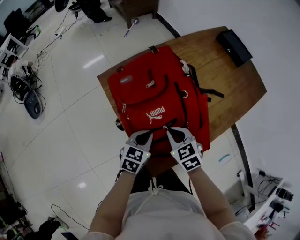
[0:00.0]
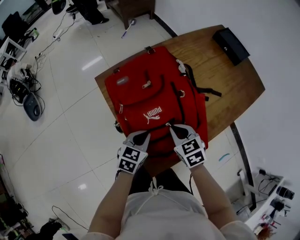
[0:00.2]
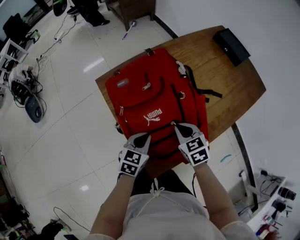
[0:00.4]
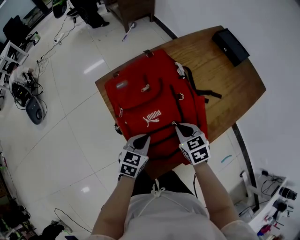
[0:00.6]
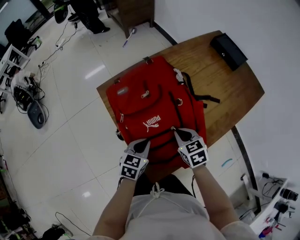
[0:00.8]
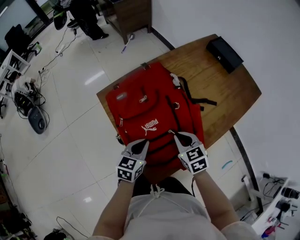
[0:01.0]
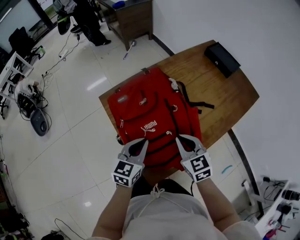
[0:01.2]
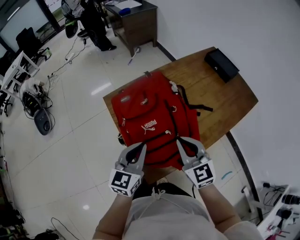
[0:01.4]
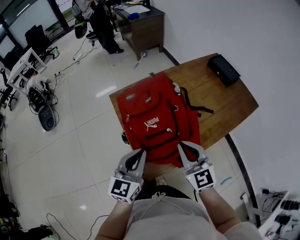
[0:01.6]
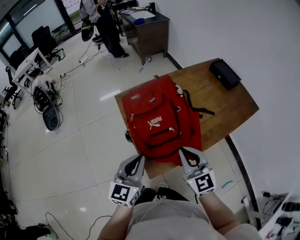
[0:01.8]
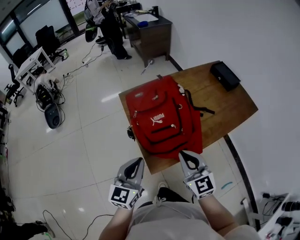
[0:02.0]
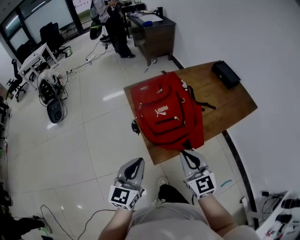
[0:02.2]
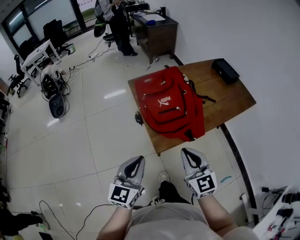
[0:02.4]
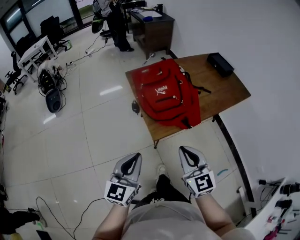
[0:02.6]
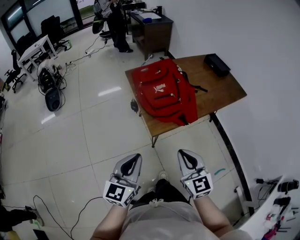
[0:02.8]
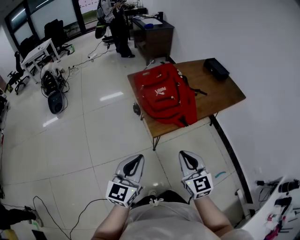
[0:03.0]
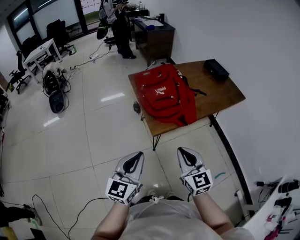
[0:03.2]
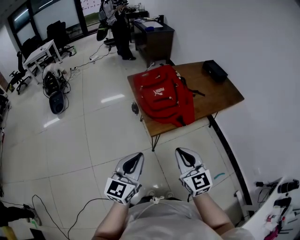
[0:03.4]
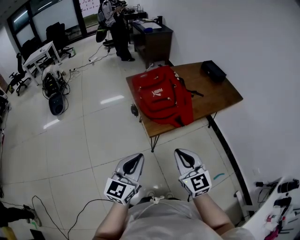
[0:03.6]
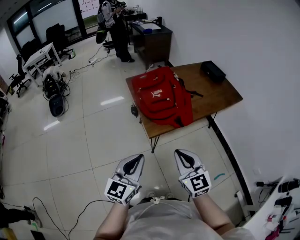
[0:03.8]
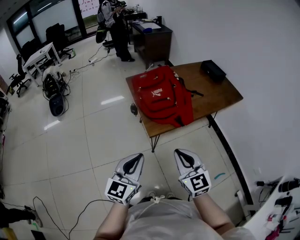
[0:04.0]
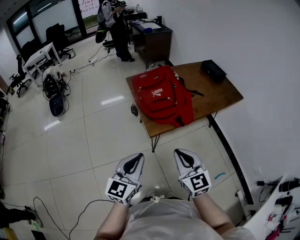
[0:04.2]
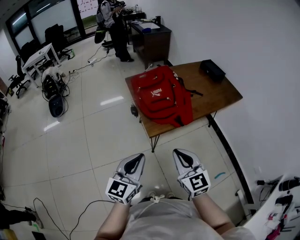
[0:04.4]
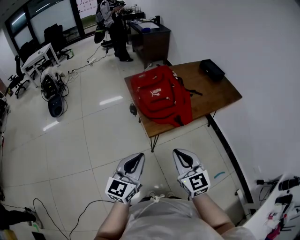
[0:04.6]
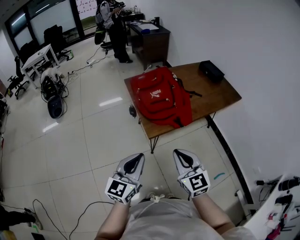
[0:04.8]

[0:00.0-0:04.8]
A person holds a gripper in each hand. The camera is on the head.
0:00.0 to 0:01.6: The two grippers go approximately 20 cm upward. The right gripper tilts its fingers about 30 degrees upward, while the left gripper swivels about 30 degrees.
0:01.6 to 0:03.2: Both grippers travel together backward, about 30 cm.
0:03.2 to 0:04.8: There are only small adjustments of the grippers.

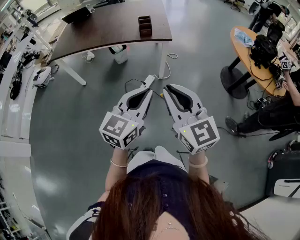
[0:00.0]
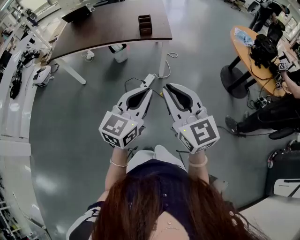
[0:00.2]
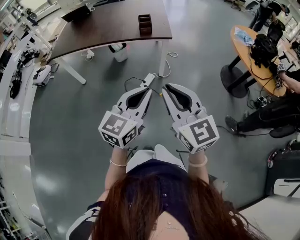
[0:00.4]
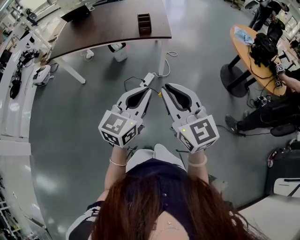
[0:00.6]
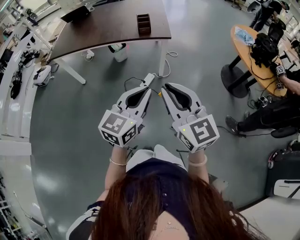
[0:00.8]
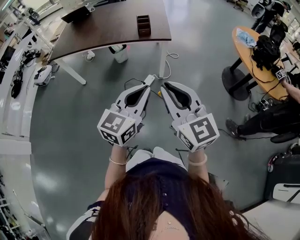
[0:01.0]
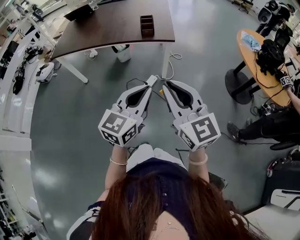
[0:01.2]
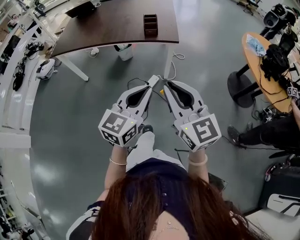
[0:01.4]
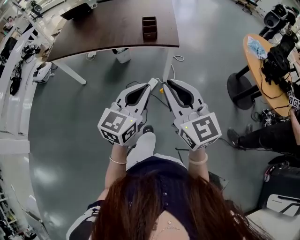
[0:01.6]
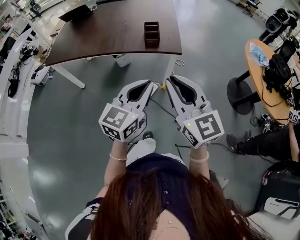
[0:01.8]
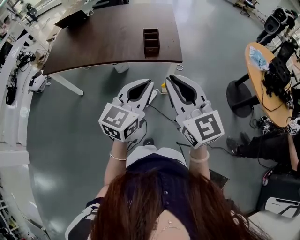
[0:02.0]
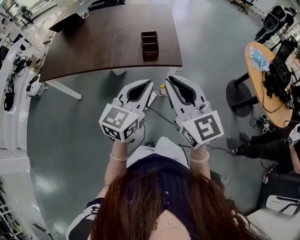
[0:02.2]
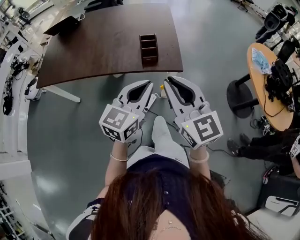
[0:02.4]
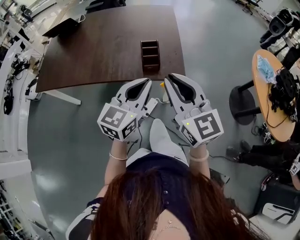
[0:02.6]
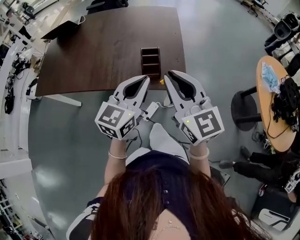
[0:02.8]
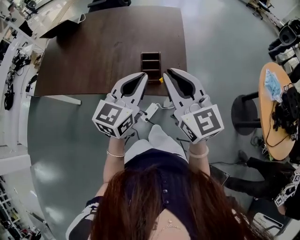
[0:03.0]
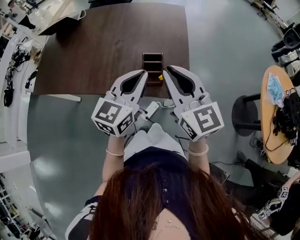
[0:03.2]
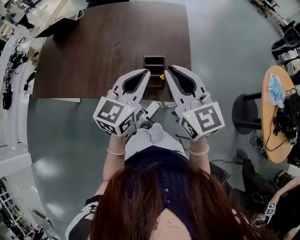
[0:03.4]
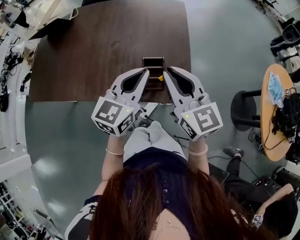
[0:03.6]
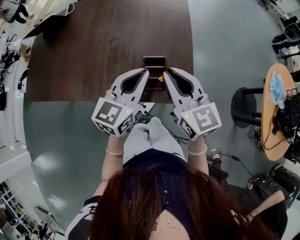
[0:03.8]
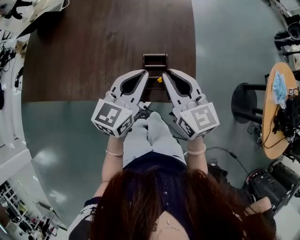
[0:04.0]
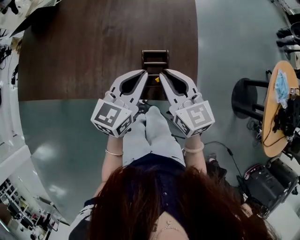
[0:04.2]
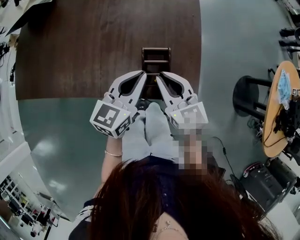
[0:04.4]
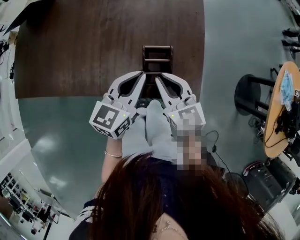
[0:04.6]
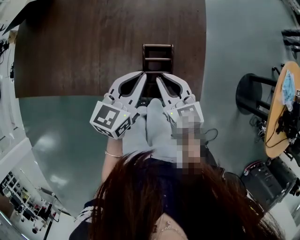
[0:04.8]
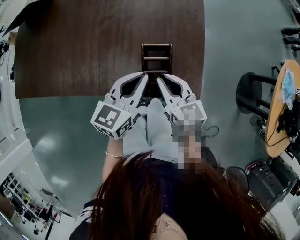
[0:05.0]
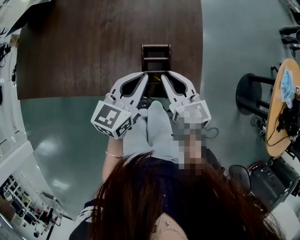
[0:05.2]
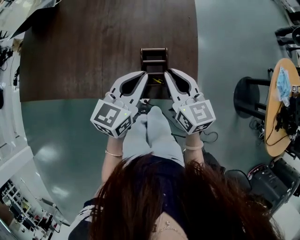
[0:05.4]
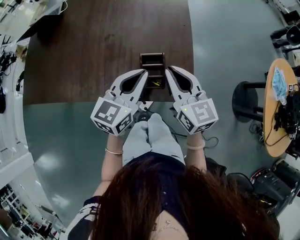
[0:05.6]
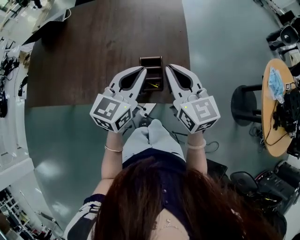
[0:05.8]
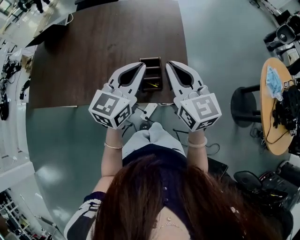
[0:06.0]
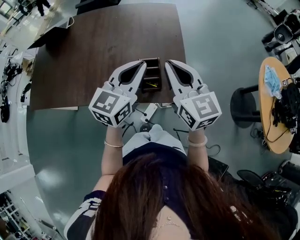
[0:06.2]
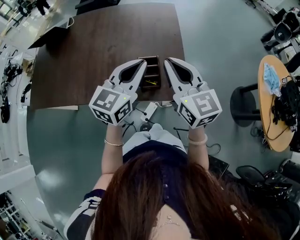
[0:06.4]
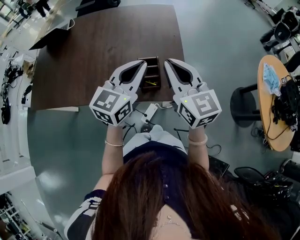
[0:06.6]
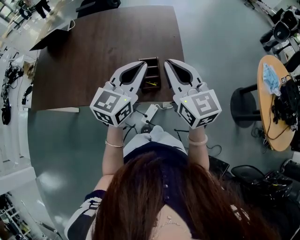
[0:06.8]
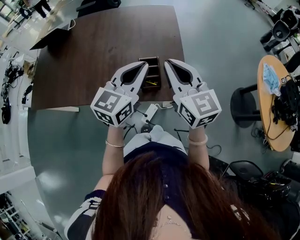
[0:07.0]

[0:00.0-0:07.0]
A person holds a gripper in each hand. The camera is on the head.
0:00.0 to 0:01.4: Both grippers move forward, approximately 10 cm.
0:01.4 to 0:02.8: The two grippers travel together, forward, roughly 40 cm.
0:02.8 to 0:04.2: Both grippers travel together forward and downward, roughly 25 cm. The right gripper changes its angle by approximately 20 degrees.
0:04.2 to 0:05.6: The right gripper travels downward and back again, approximately 10 cm each way.
0:05.6 to 0:07.0: The left gripper is displaced upward by roughly 10 cm; the right gripper goes some 10 cm upward and backward.

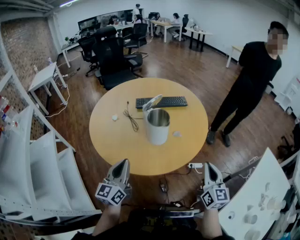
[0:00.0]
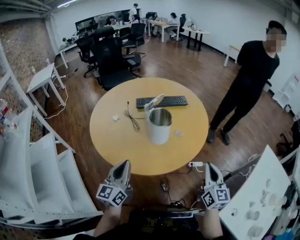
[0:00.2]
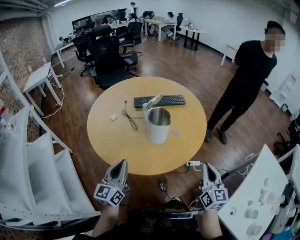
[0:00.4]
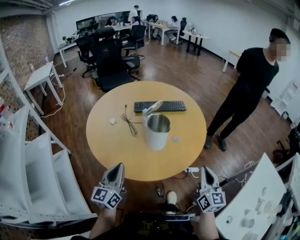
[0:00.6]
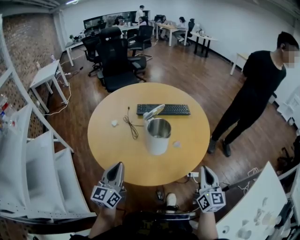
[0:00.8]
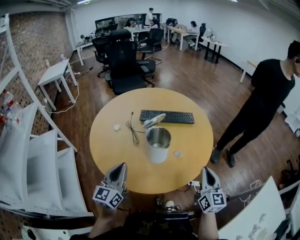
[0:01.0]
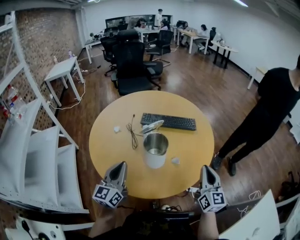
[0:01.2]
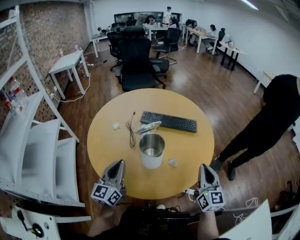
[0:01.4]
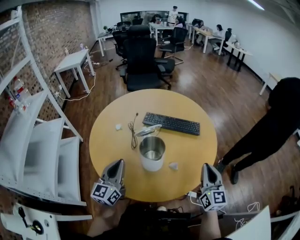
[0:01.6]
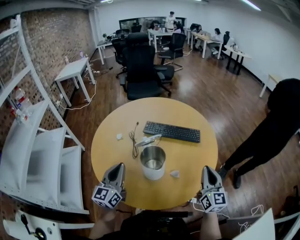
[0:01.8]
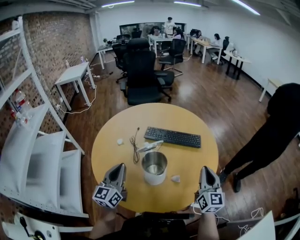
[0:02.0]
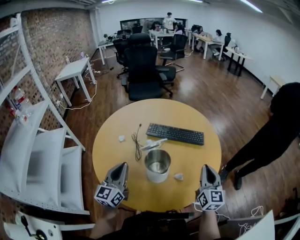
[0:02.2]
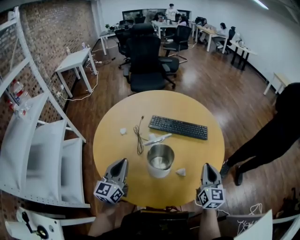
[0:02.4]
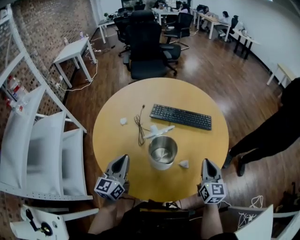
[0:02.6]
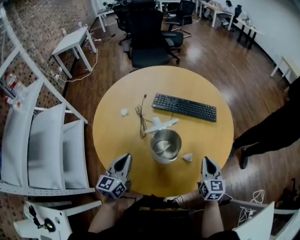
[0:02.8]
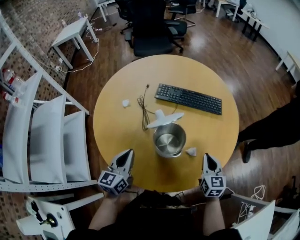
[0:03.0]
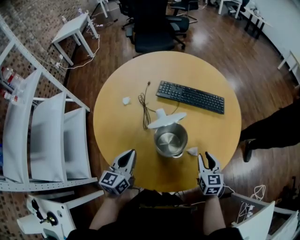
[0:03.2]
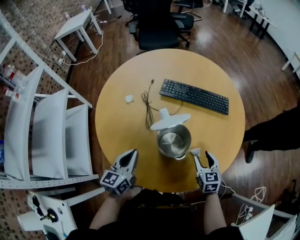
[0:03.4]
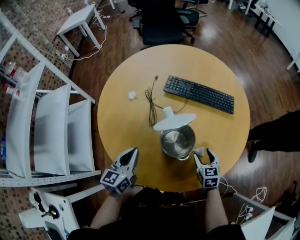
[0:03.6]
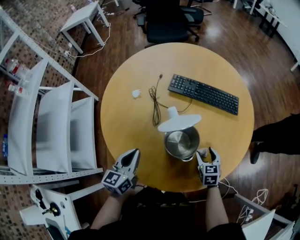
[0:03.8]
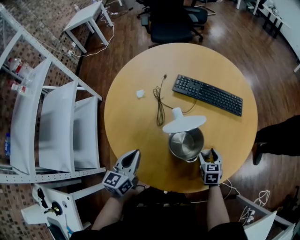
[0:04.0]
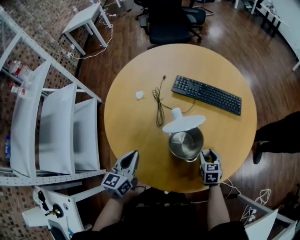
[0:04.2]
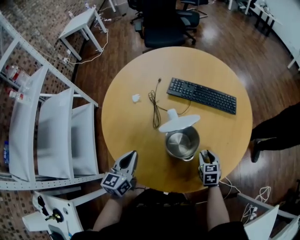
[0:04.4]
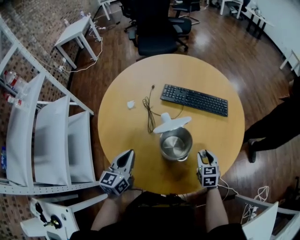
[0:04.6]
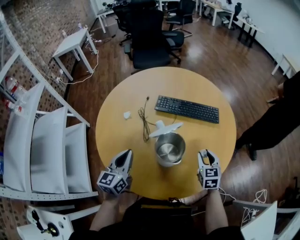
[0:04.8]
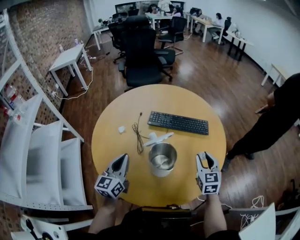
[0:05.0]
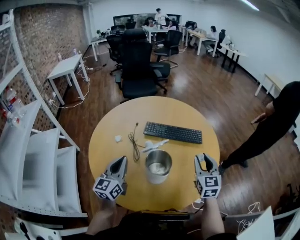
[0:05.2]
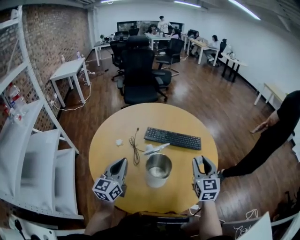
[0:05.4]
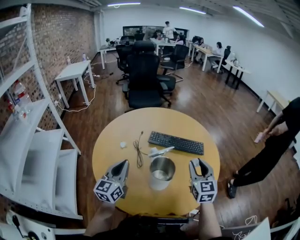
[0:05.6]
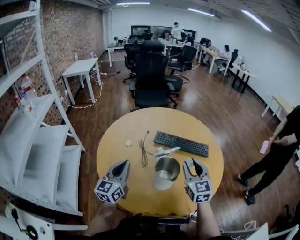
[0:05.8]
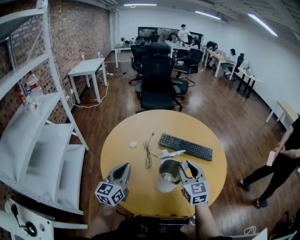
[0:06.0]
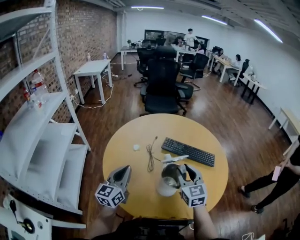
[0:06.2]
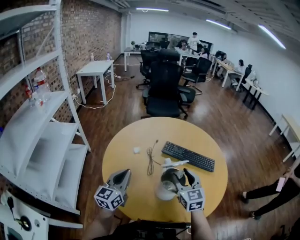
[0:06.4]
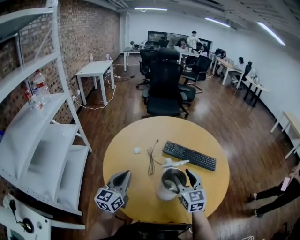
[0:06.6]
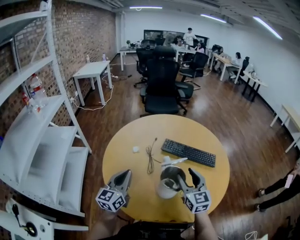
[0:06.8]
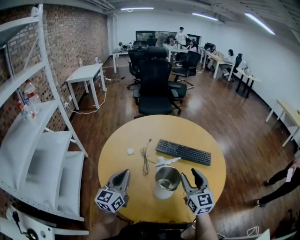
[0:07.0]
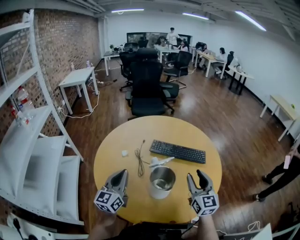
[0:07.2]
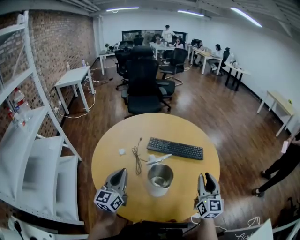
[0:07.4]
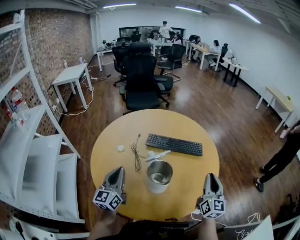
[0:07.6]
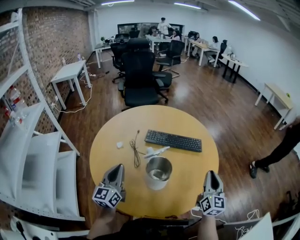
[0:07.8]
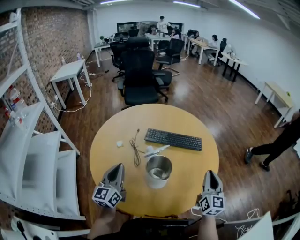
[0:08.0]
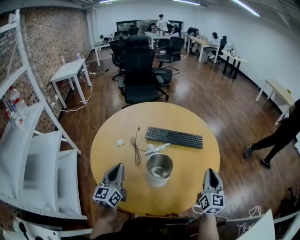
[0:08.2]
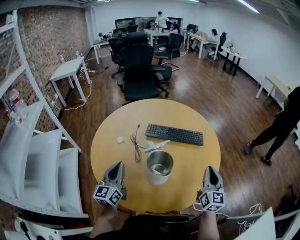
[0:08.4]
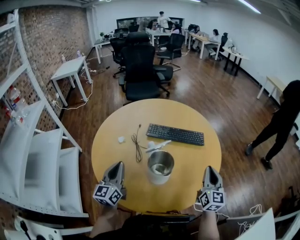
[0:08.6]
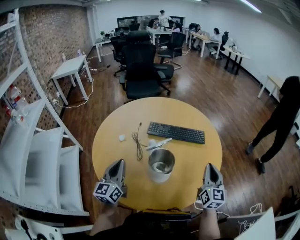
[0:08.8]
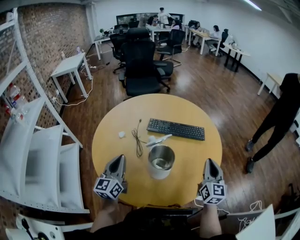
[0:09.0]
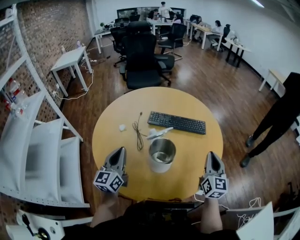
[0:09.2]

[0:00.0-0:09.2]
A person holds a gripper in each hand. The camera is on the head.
0:00.0 to 0:01.6: The left gripper heads forward, covering approximately 15 cm, and turns by roughly 20 degrees, while the right gripper heads forward, covering some 25 cm.
0:01.6 to 0:03.0: The left gripper goes roughly 10 cm downward; the right gripper shifts approximately 15 cm downward, and swivels about 20 degrees.
0:03.0 to 0:04.6: The right gripper shifts about 10 cm downward, and opens.
0:04.6 to 0:06.2: The right gripper shifts some 25 cm upward and to the left, and turns by some 30 degrees; the left gripper goes approximately 10 cm upward.
0:06.2 to 0:07.6: The right gripper shifts some 20 cm to the right, and swivels roughly 40 degrees.
0:07.6 to 0:09.2: The grippers make only small movements.

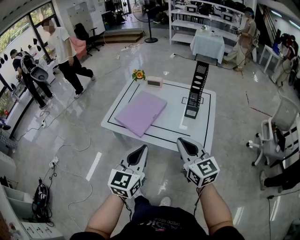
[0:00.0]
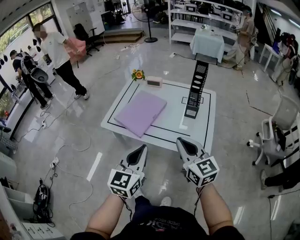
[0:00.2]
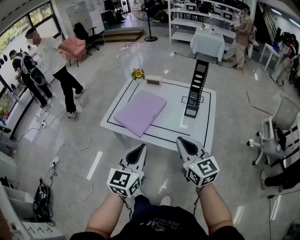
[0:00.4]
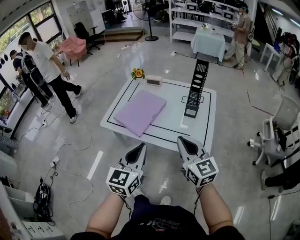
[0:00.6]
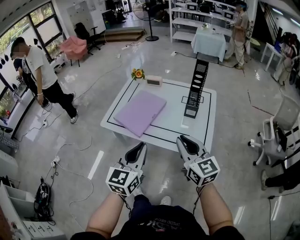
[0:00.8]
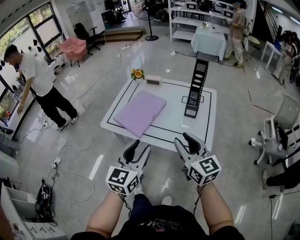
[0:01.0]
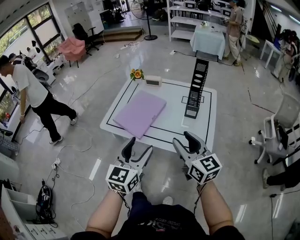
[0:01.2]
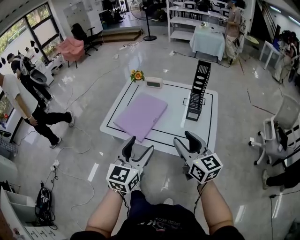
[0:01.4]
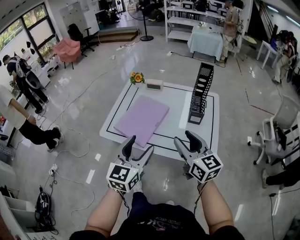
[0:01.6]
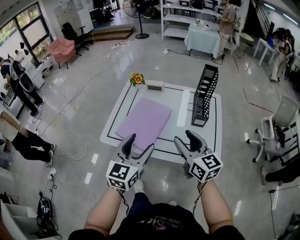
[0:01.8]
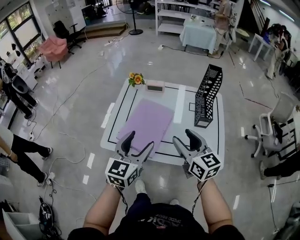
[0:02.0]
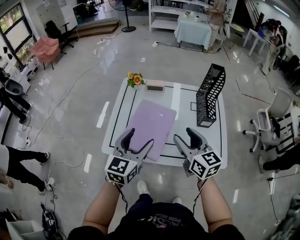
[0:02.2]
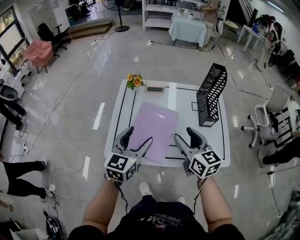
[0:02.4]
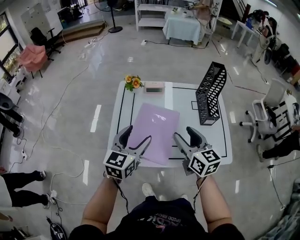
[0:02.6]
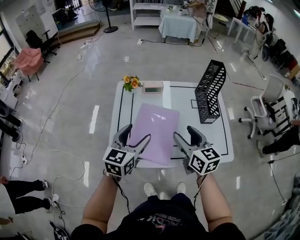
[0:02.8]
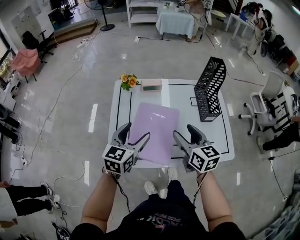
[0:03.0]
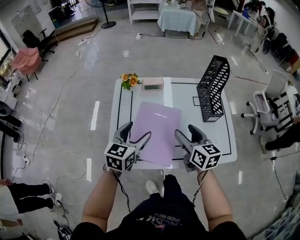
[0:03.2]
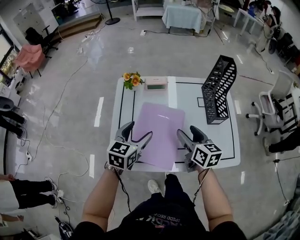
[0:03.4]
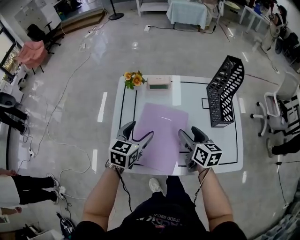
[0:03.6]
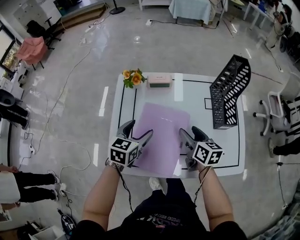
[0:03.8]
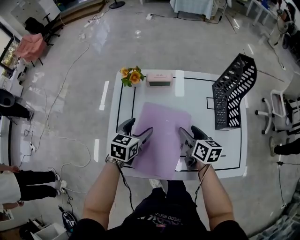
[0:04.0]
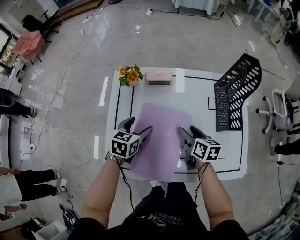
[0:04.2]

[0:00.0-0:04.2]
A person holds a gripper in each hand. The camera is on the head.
0:00.0 to 0:01.4: The grippers both shift forward by some 5 cm. The left gripper opens up. The right gripper opens up.
0:01.4 to 0:02.8: Both grippers move forward and to the left, some 30 cm. The left gripper rotates approximately 20 degrees. Meanwhile the right gripper changes its angle by about 20 degrees.
0:02.8 to 0:04.2: The grippers both shift downward and forward by some 25 cm. The right gripper changes its angle by some 30 degrees, while the left gripper changes its angle by roughly 30 degrees.
